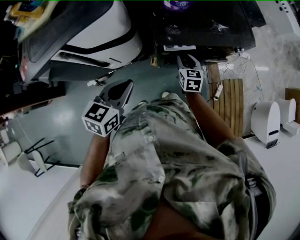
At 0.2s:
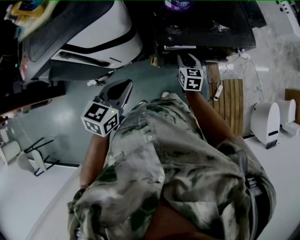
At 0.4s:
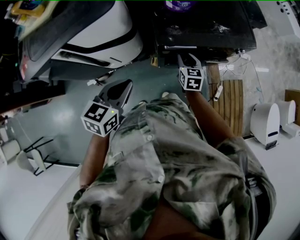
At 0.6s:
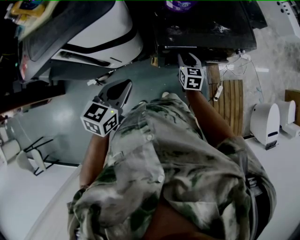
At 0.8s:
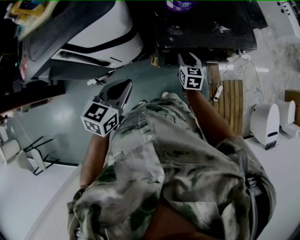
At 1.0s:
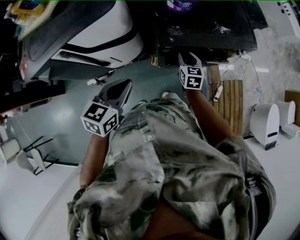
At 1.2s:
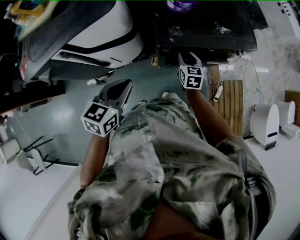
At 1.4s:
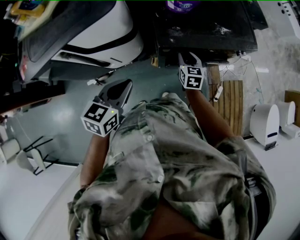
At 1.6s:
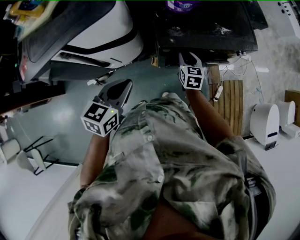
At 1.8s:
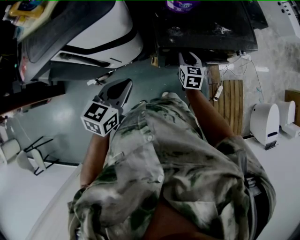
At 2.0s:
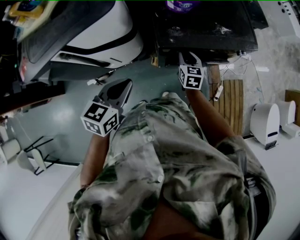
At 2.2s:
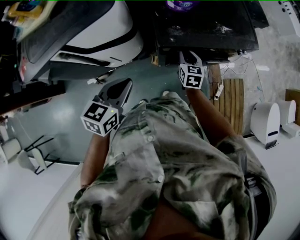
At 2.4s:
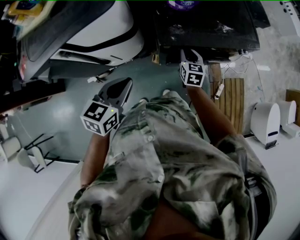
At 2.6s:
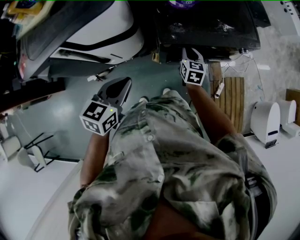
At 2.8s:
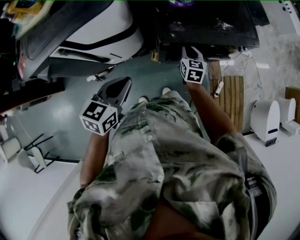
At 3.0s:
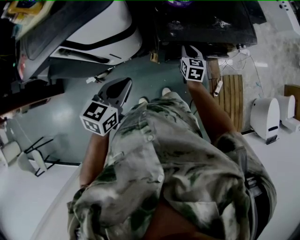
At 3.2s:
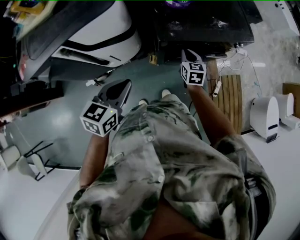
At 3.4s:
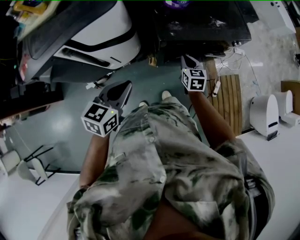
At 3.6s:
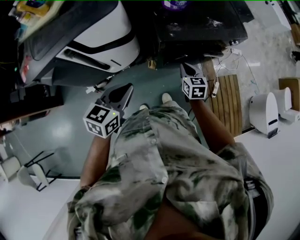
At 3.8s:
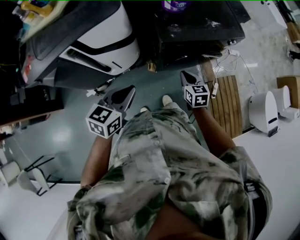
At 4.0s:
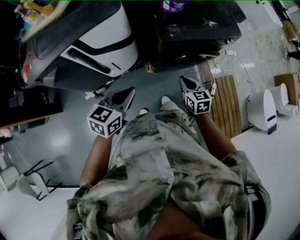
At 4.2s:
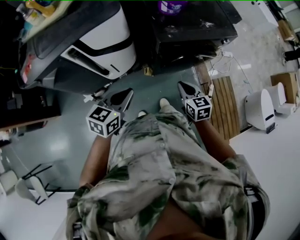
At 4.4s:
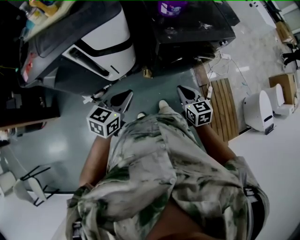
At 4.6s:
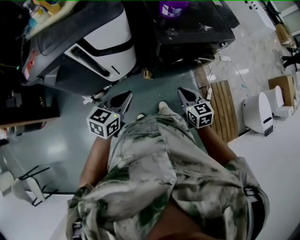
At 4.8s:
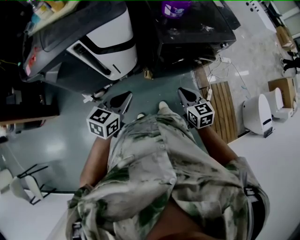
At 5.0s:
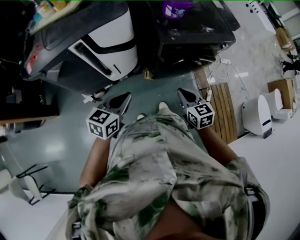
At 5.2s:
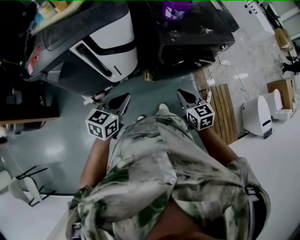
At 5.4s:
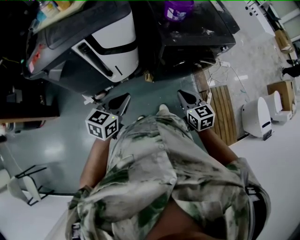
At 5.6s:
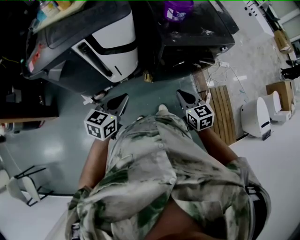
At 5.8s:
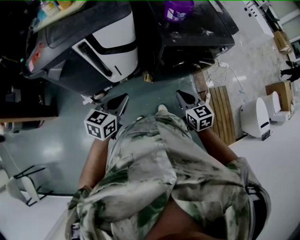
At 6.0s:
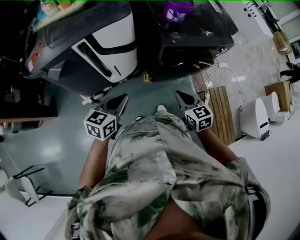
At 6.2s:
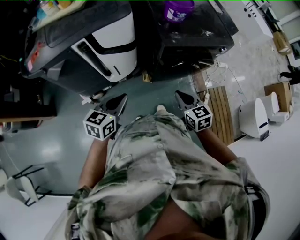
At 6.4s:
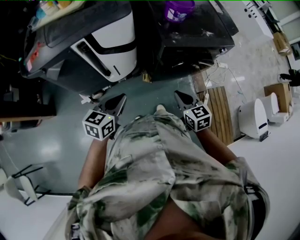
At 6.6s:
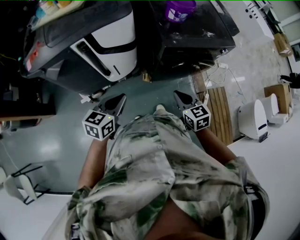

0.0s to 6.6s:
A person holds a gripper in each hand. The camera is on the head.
0.0s to 1.6s: The grippers move only a little.
1.6s to 3.2s: The right gripper closes up.
3.2s to 5.0s: The left gripper heads backward and to the left, covering about 15 cm. Meanwhile the right gripper moves backward, some 30 cm.
5.0s to 6.6s: The grippers move only a little.

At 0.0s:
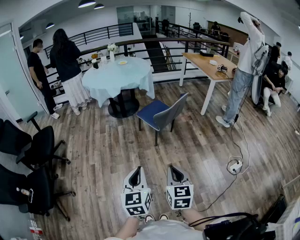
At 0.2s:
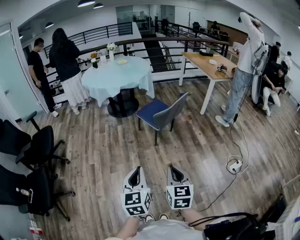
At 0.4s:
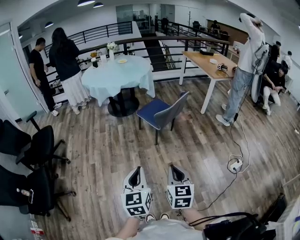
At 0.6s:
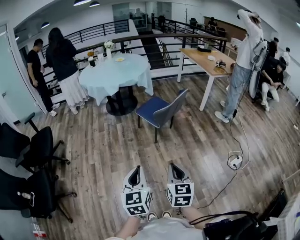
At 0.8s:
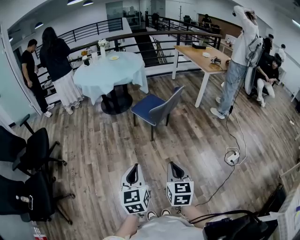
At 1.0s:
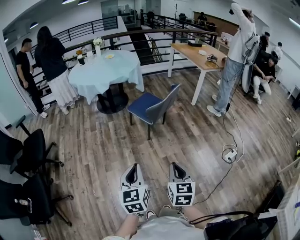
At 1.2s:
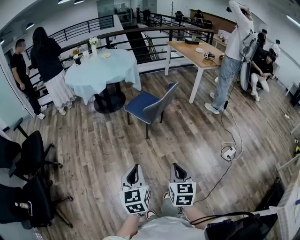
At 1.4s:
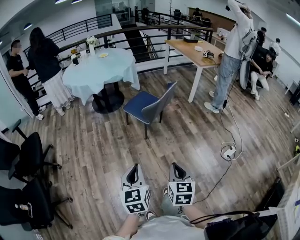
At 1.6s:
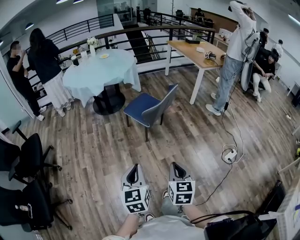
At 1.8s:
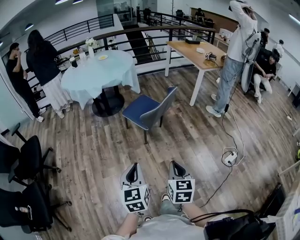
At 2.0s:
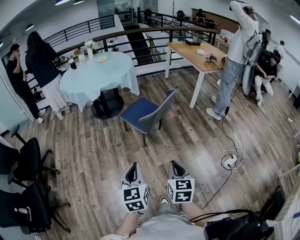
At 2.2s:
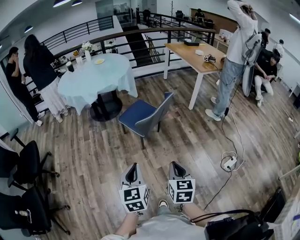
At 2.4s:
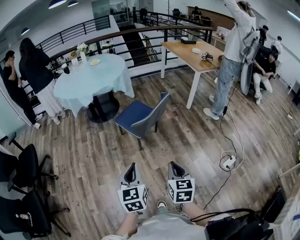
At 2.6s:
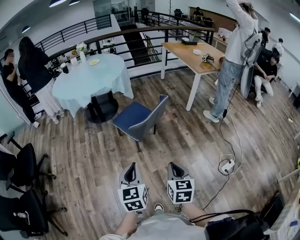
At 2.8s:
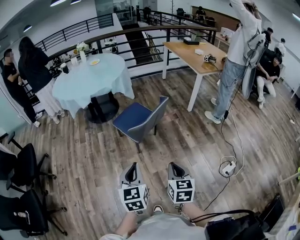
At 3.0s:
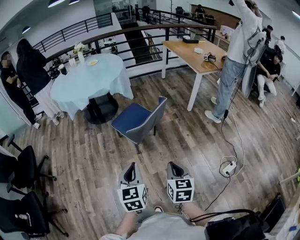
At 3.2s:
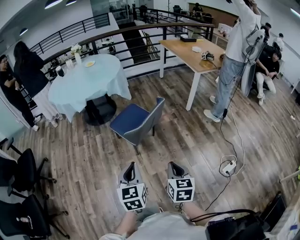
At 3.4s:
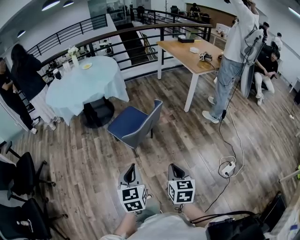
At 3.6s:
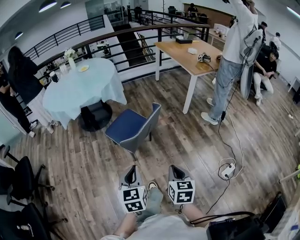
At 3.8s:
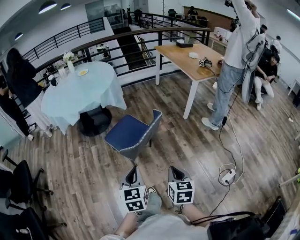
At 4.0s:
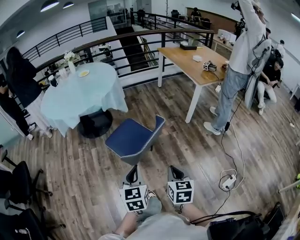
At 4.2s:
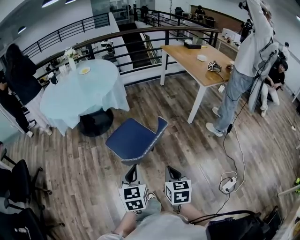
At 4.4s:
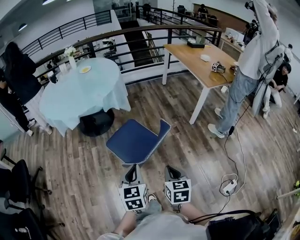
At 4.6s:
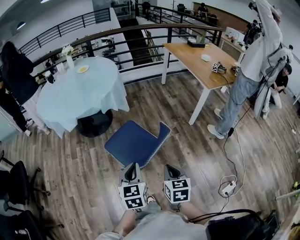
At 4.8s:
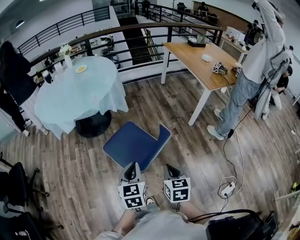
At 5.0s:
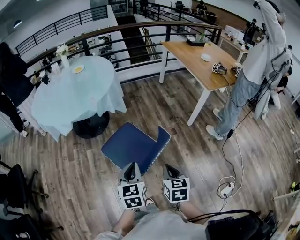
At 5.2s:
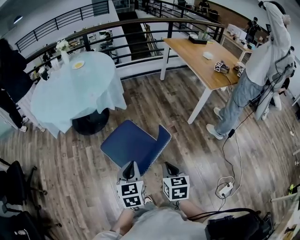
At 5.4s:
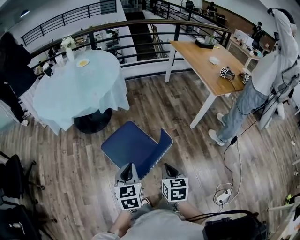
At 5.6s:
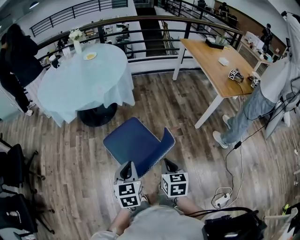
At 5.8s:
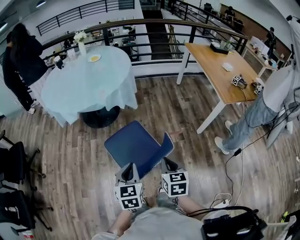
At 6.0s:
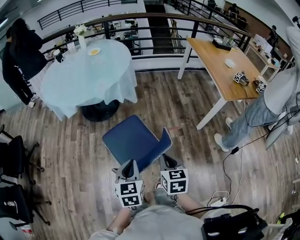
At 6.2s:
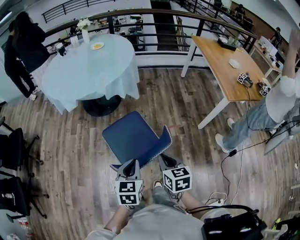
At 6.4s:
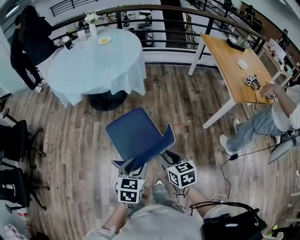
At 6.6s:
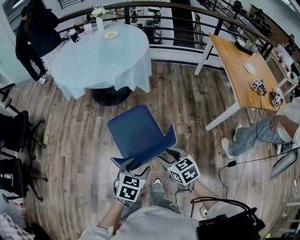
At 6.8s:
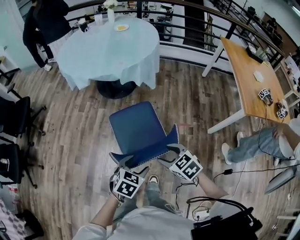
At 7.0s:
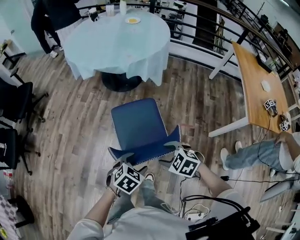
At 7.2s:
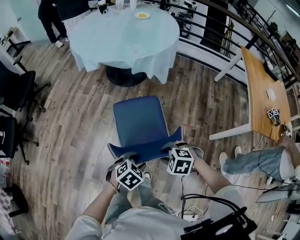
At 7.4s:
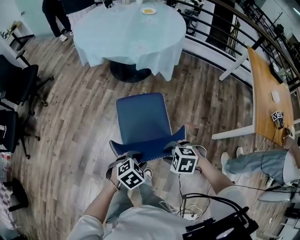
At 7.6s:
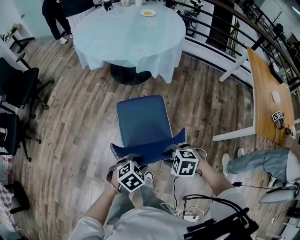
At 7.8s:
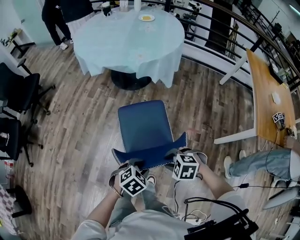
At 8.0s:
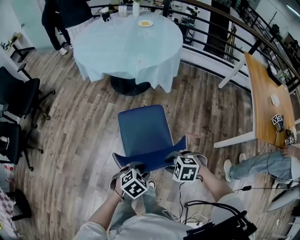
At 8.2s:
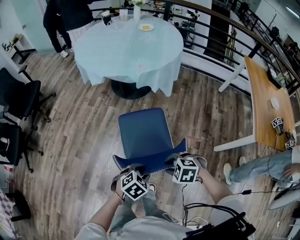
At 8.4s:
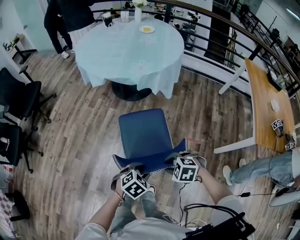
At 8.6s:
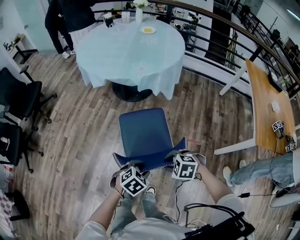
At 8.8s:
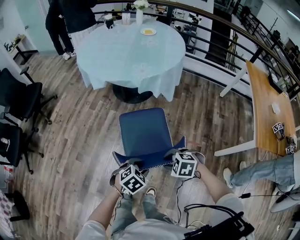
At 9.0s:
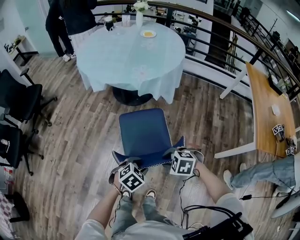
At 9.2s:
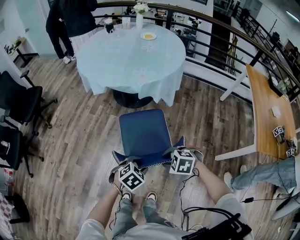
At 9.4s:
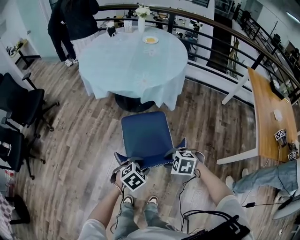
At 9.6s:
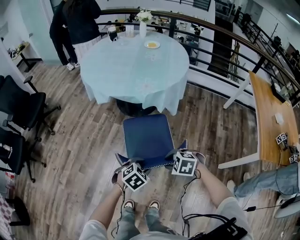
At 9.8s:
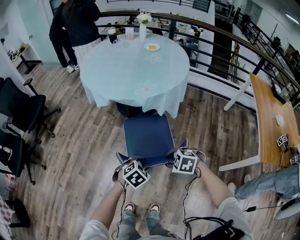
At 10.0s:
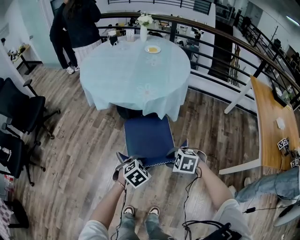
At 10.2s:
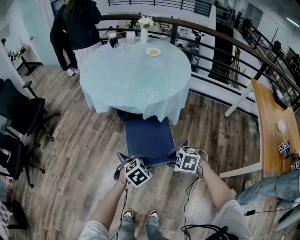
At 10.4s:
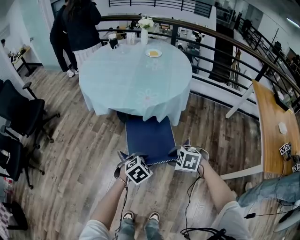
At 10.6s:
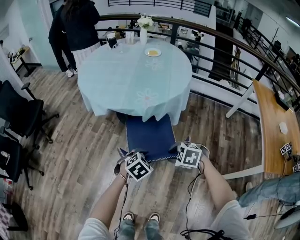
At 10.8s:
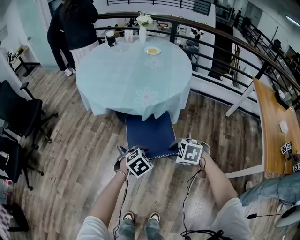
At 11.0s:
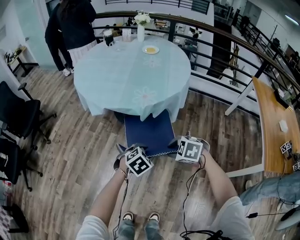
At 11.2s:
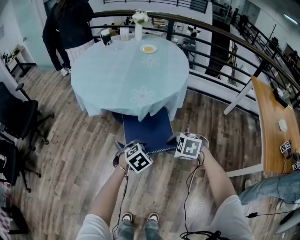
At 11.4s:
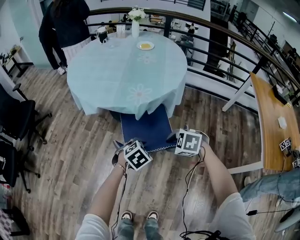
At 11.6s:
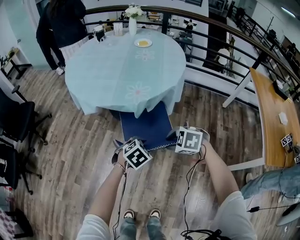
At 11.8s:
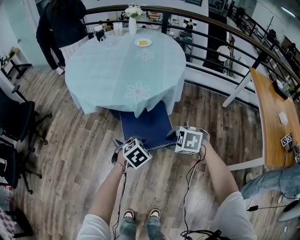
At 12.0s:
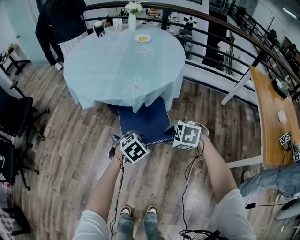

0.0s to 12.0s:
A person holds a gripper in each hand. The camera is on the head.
0.0s to 1.6s: The grippers both shift forward by some 10 cm.
1.6s to 3.0s: The grippers both shift forward and to the right by some 25 cm.
3.0s to 4.4s: Both grippers travel together forward, some 25 cm.
4.4s to 6.0s: Both grippers move forward, some 15 cm.
6.0s to 7.6s: Both grippers travel together downward, approximately 15 cm. The left gripper tilts its fingers some 30 degrees downward, and opens up, while the right gripper tilts its fingers about 30 degrees downward, and opens.
7.6s to 9.0s: The left gripper moves roughly 10 cm. The right gripper shifts by roughly 10 cm.
9.0s to 10.4s: The left gripper ends up about 20 cm from where it was, while the right gripper shifts by some 15 cm.
10.4s to 12.0s: The right gripper ends up about 10 cm from where it was; the left gripper shifts by approximately 10 cm.

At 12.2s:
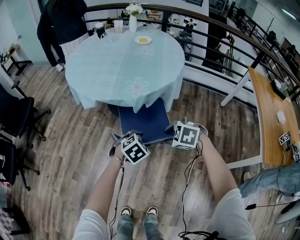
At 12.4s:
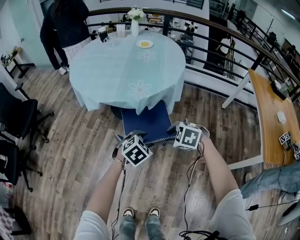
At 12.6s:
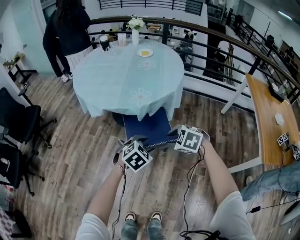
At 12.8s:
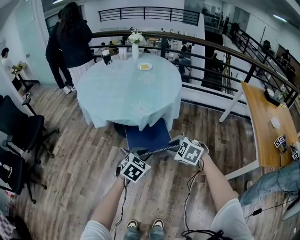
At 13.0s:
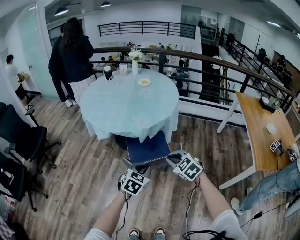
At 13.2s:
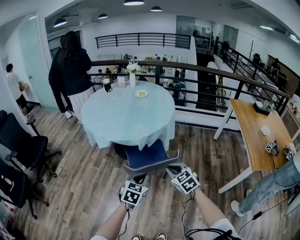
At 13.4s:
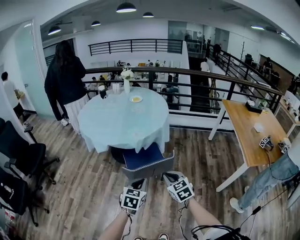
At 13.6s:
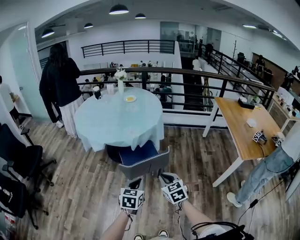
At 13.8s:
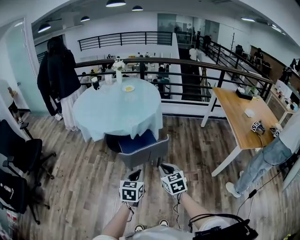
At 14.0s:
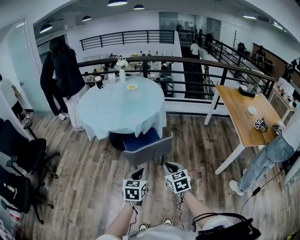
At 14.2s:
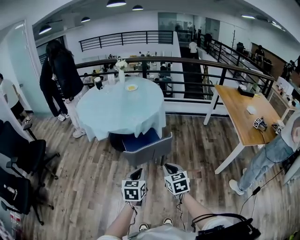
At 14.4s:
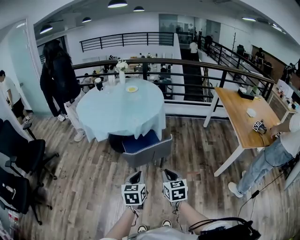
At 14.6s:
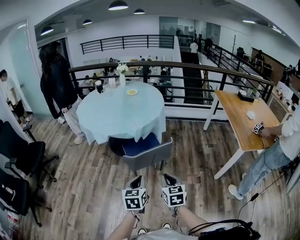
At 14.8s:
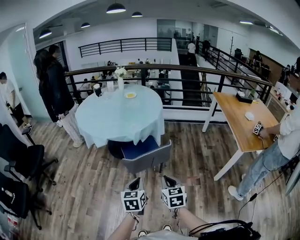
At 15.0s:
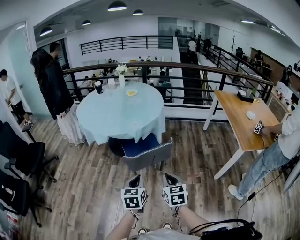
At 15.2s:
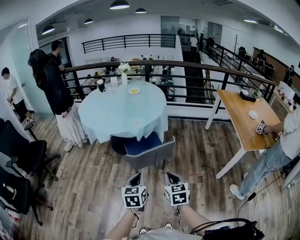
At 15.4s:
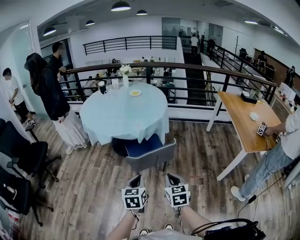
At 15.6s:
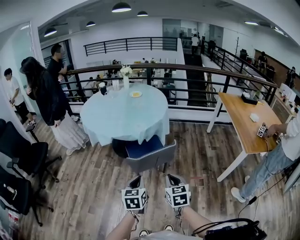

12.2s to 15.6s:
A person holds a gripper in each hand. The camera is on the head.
12.2s to 13.8s: Both grippers travel together backward and upward, about 25 cm. The right gripper tips its fingers upward by about 40 degrees, and closes its fingers; the left gripper angles its fingers upward, by about 30 degrees, and closes up.
13.8s to 15.6s: The grippers make only small movements.

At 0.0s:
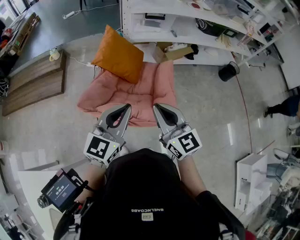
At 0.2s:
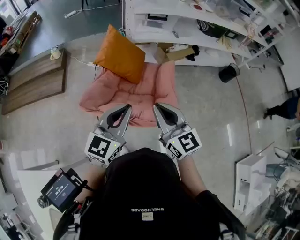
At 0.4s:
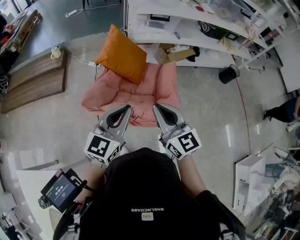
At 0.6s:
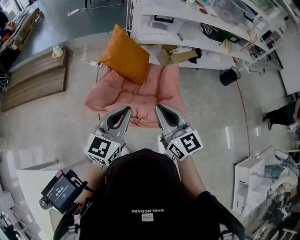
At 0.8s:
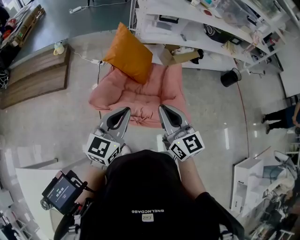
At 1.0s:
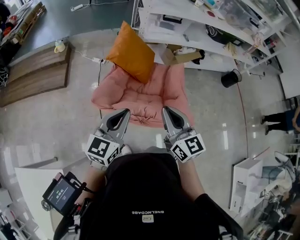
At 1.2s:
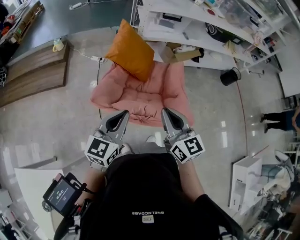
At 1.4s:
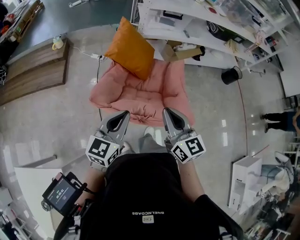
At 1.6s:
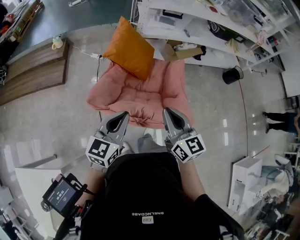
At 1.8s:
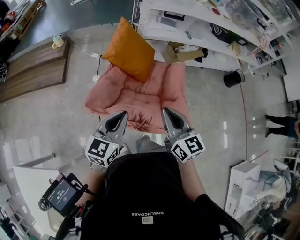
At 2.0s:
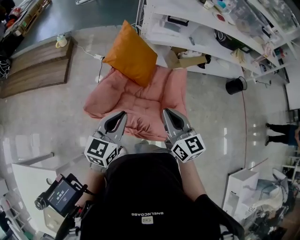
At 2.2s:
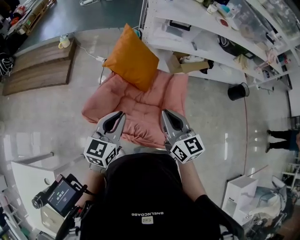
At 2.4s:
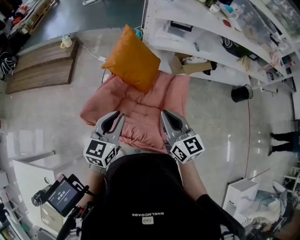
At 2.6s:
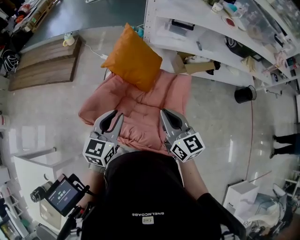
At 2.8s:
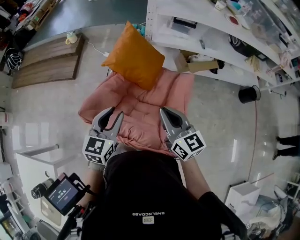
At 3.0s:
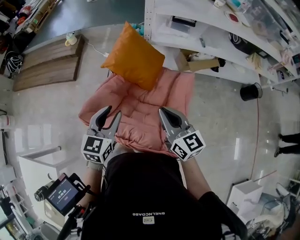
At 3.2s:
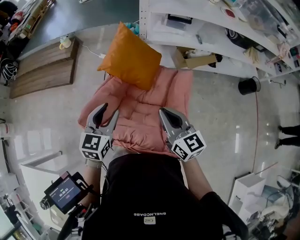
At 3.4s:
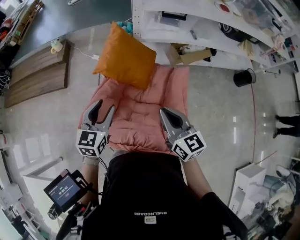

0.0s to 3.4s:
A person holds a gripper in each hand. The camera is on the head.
0.0s to 1.6s: The left gripper shifts about 15 cm to the left and downward; the right gripper is displaced downward and to the left by approximately 5 cm.
1.6s to 3.4s: The left gripper is displaced forward by some 20 cm, and opens its fingers. The right gripper goes approximately 15 cm forward and to the right.
